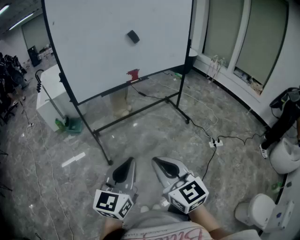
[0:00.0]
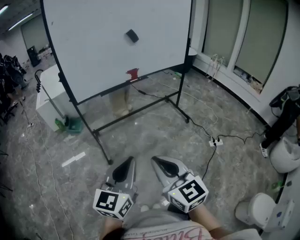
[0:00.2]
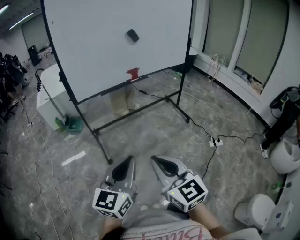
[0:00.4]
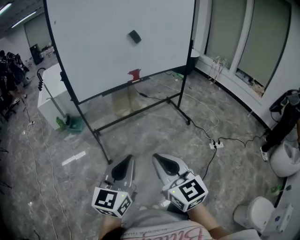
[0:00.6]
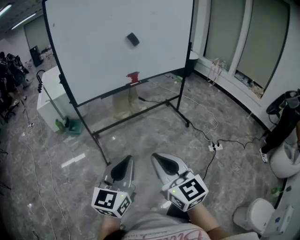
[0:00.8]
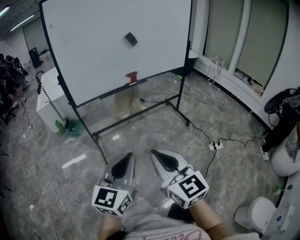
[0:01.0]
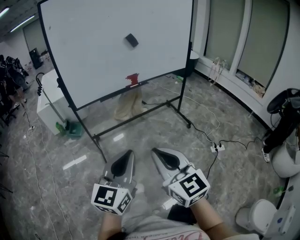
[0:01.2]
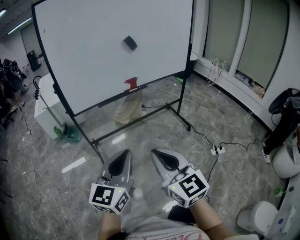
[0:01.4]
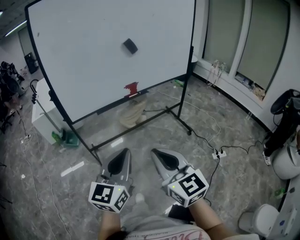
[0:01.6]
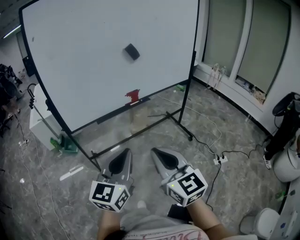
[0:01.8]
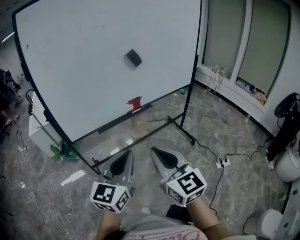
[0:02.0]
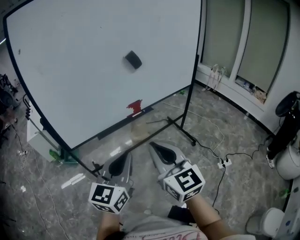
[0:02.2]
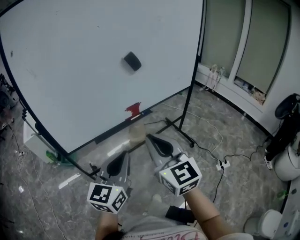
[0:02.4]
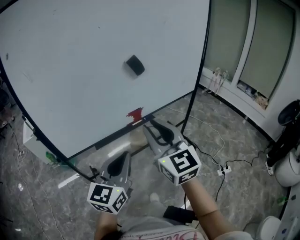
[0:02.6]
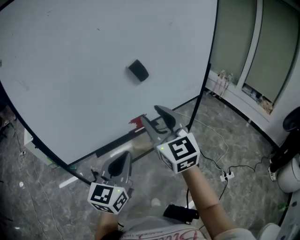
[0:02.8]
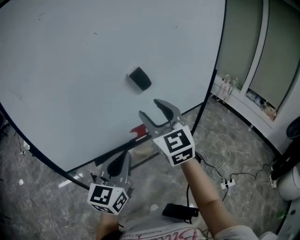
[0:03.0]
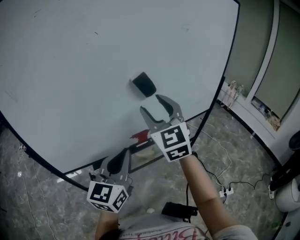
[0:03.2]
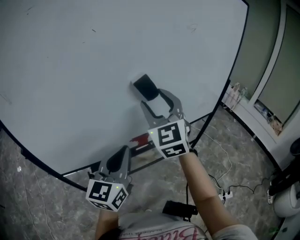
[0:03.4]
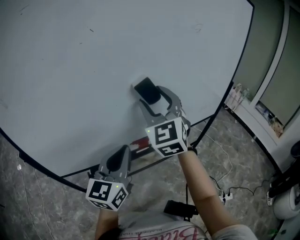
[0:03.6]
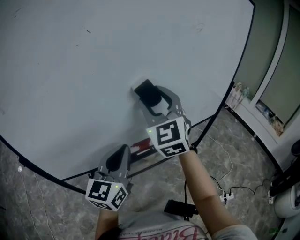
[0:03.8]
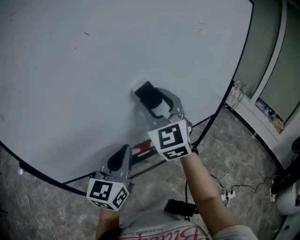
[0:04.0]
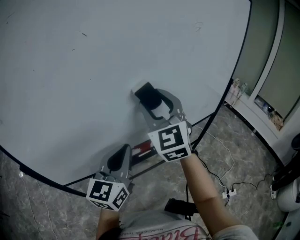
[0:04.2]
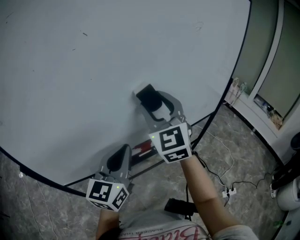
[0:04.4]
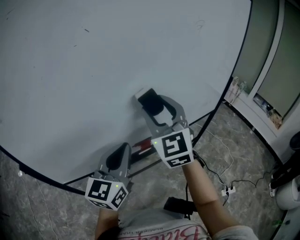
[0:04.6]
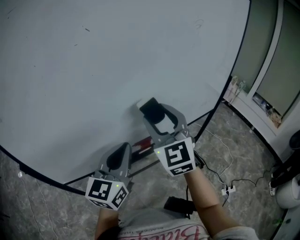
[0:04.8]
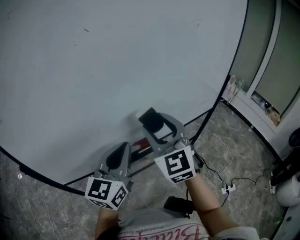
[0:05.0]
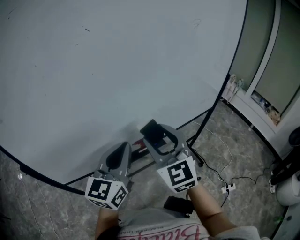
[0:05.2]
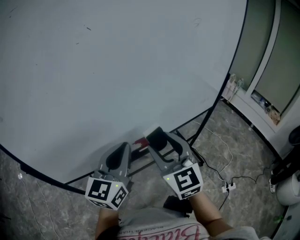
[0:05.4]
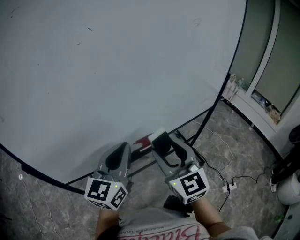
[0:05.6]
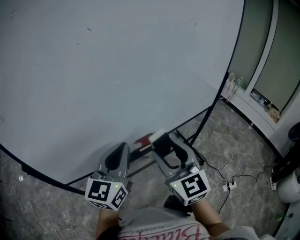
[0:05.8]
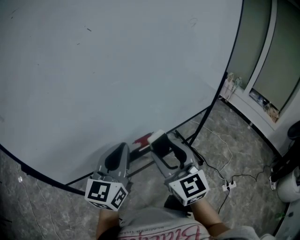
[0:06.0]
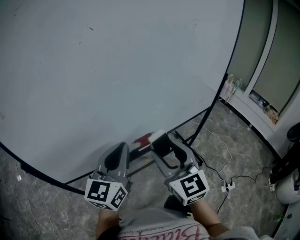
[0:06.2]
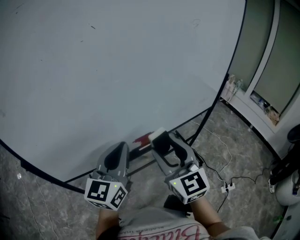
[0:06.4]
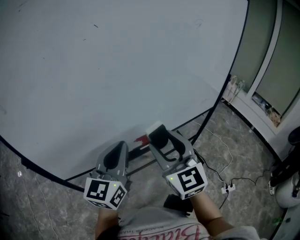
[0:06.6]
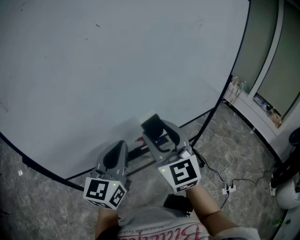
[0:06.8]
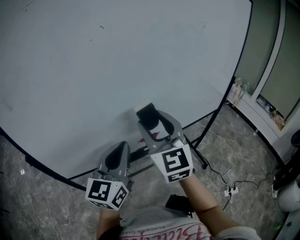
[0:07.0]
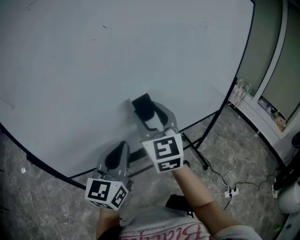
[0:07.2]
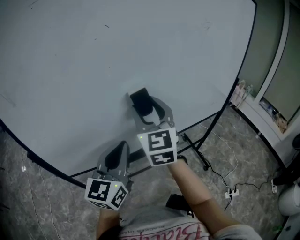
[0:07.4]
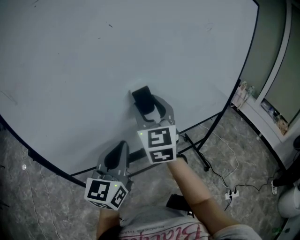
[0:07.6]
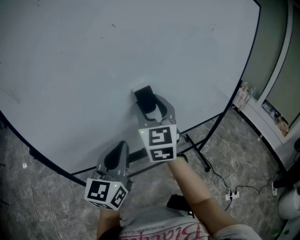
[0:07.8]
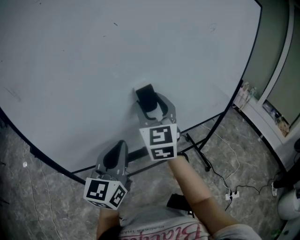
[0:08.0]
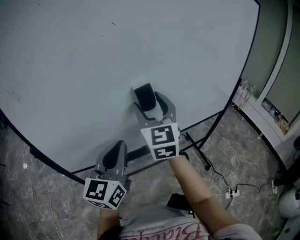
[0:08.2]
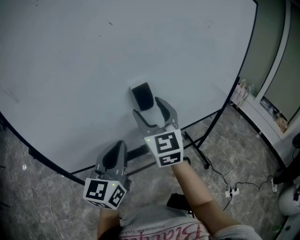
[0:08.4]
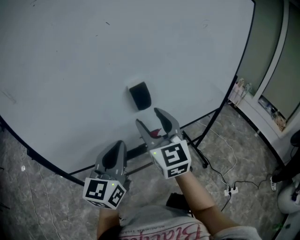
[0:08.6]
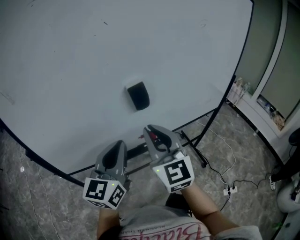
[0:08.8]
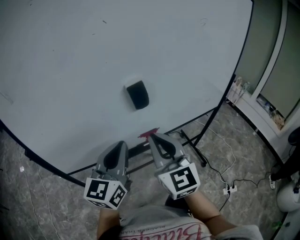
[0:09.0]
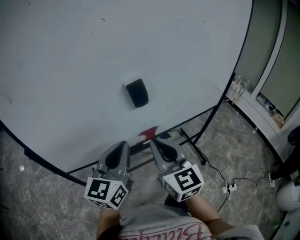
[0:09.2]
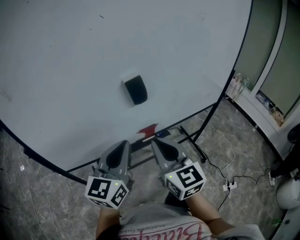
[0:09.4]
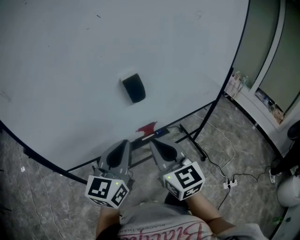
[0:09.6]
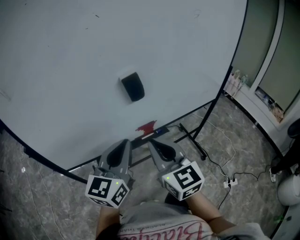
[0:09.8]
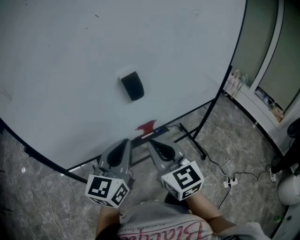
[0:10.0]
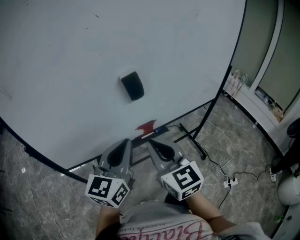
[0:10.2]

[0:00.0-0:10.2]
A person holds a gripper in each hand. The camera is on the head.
0:00.0 to 0:01.4: Both grippers move forward, roughly 10 cm.
0:01.4 to 0:03.0: Both grippers move forward, roughly 40 cm. The right gripper changes its angle by about 20 degrees, and opens its fingers.
0:03.0 to 0:04.4: The two grippers go about 10 cm forward.
0:04.4 to 0:05.8: The right gripper goes roughly 15 cm backward and downward.
0:05.8 to 0:07.2: The right gripper heads forward, upward and to the left, covering approximately 15 cm.
0:07.2 to 0:08.8: The right gripper heads backward, covering approximately 5 cm, and closes up.
0:08.8 to 0:10.2: The right gripper shifts some 5 cm backward.

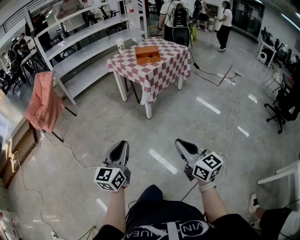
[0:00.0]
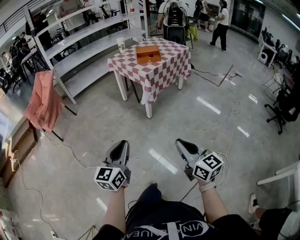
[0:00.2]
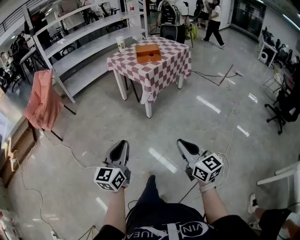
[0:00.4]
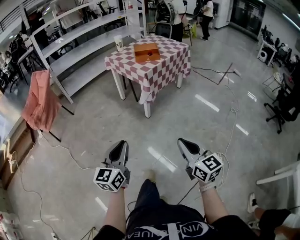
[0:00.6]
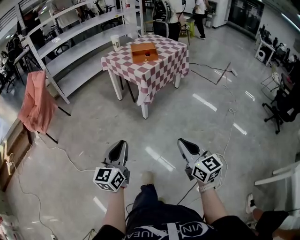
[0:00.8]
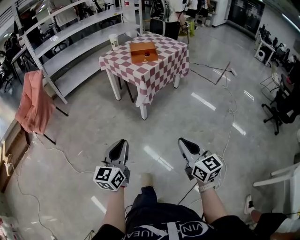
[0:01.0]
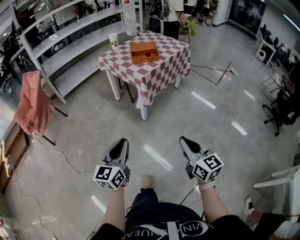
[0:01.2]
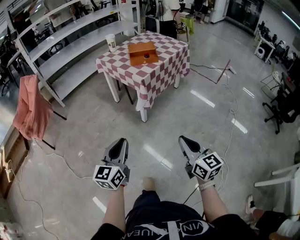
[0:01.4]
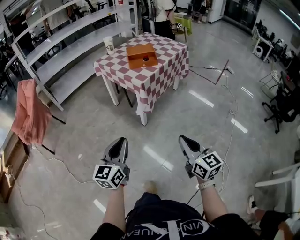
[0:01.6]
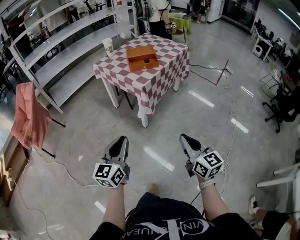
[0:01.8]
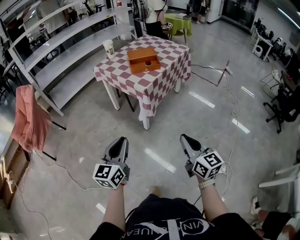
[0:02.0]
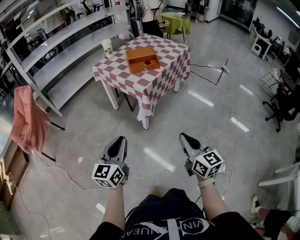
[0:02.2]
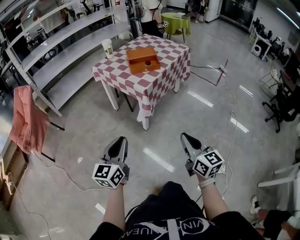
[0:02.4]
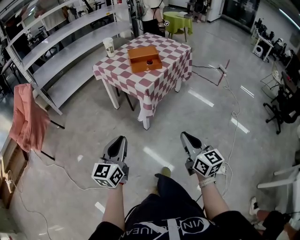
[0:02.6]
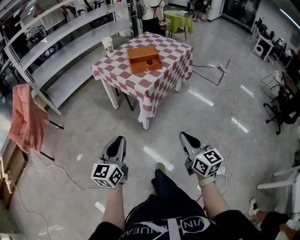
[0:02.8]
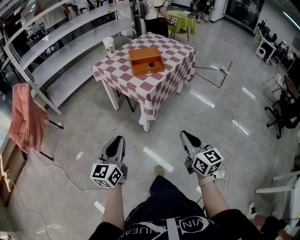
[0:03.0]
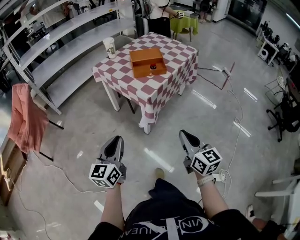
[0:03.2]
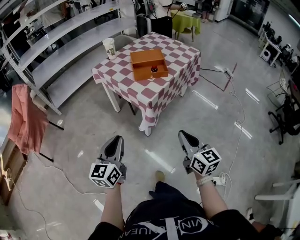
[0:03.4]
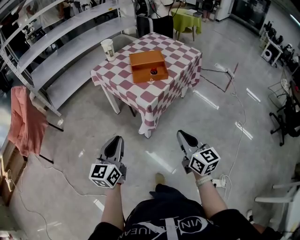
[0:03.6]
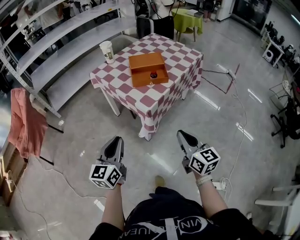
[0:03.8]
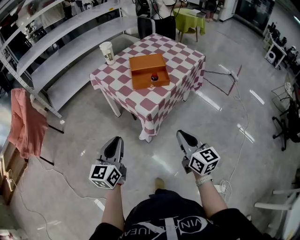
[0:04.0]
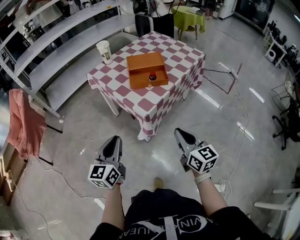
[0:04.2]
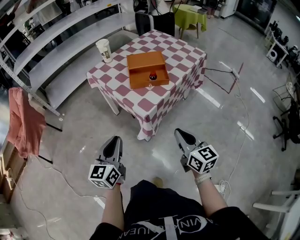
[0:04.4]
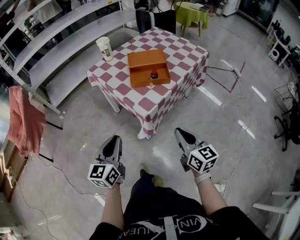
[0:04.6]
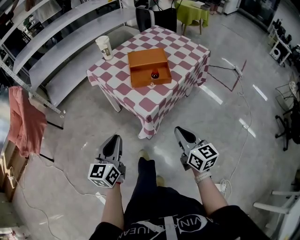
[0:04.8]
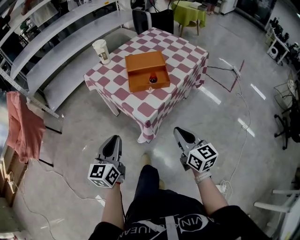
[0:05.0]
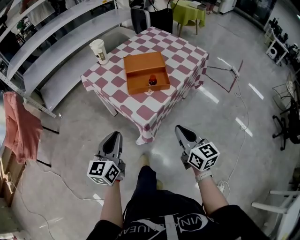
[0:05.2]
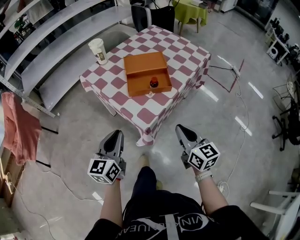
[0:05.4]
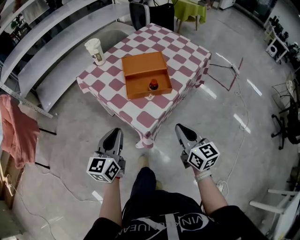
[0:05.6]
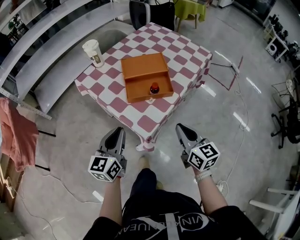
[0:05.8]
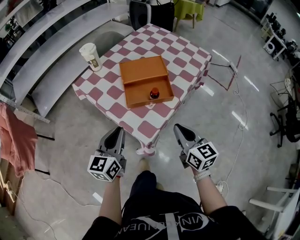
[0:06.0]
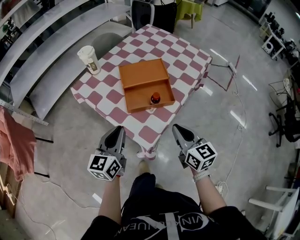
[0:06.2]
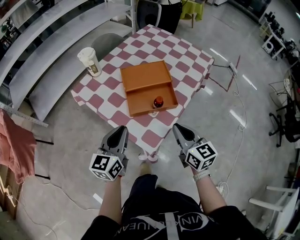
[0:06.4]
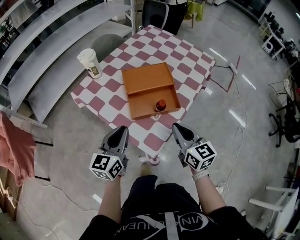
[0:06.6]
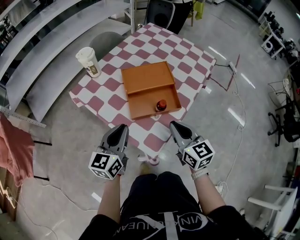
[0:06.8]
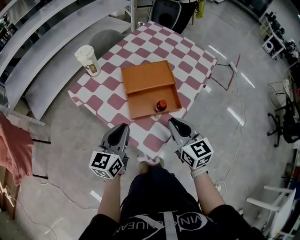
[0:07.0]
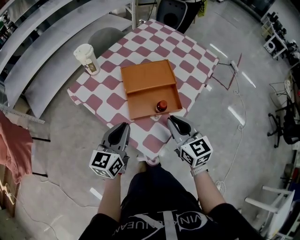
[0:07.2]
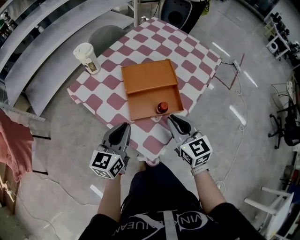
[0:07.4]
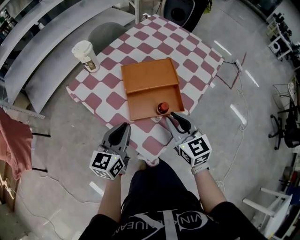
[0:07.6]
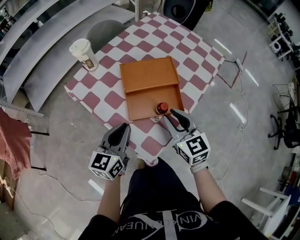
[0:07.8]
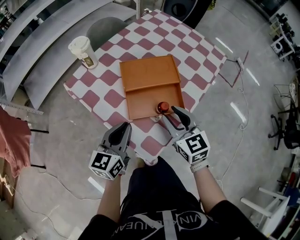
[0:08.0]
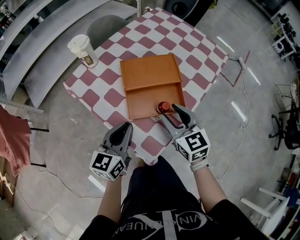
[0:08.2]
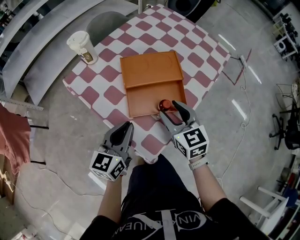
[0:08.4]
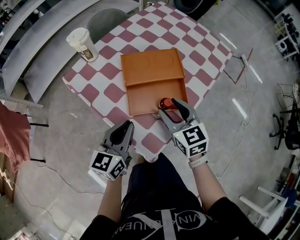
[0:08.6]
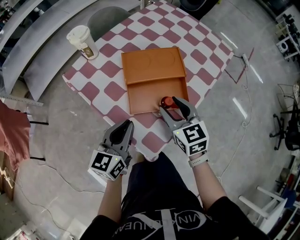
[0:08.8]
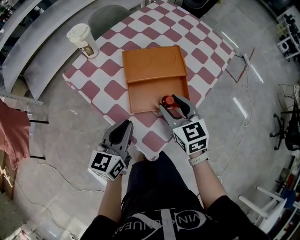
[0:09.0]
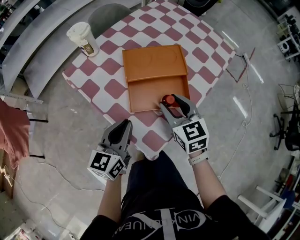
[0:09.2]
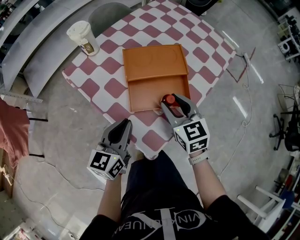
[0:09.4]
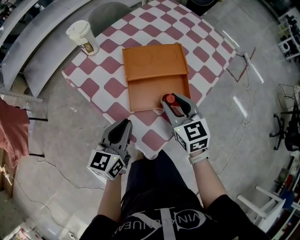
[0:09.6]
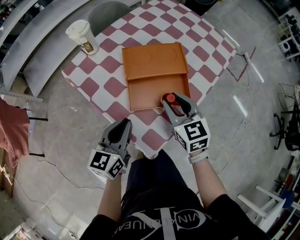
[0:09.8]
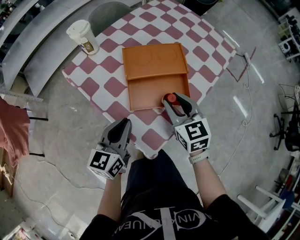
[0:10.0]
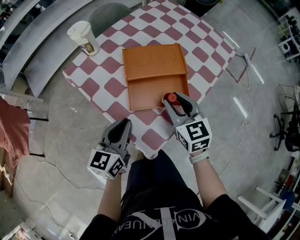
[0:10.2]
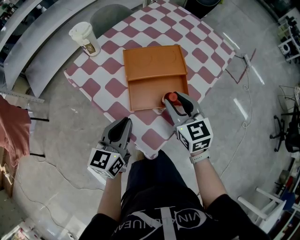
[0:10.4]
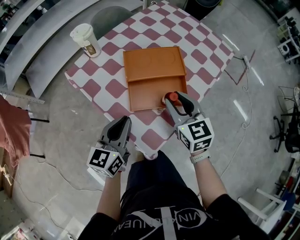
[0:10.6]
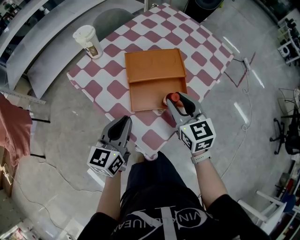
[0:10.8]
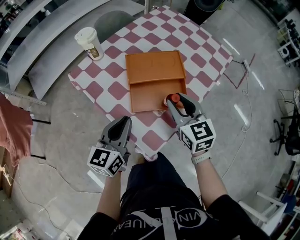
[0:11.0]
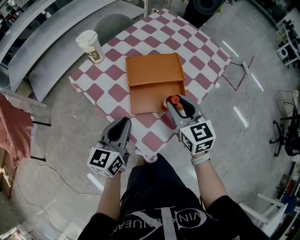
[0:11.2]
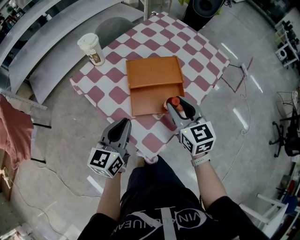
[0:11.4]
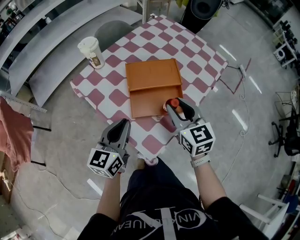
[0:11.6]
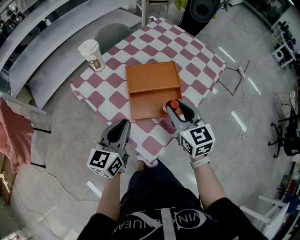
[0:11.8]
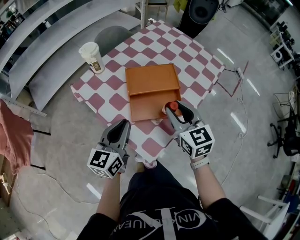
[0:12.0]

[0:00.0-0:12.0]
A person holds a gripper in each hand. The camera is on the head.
0:00.0 to 0:01.6: The two grippers go some 25 cm forward.
0:01.6 to 0:03.0: Both grippers move forward, some 15 cm.
0:03.0 to 0:04.4: Both grippers travel together forward, approximately 20 cm.
0:04.4 to 0:06.0: Both grippers move forward, about 20 cm.
0:06.0 to 0:07.6: Both grippers move forward, approximately 10 cm.
0:07.6 to 0:09.0: The right gripper ends up approximately 5 cm from where it was, and opens up.
0:09.0 to 0:10.4: There are only small adjustments of the grippers.
0:10.4 to 0:12.0: The two grippers go roughly 5 cm upward.

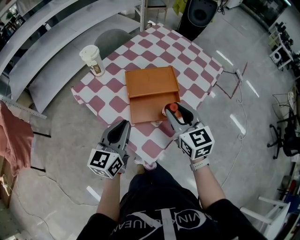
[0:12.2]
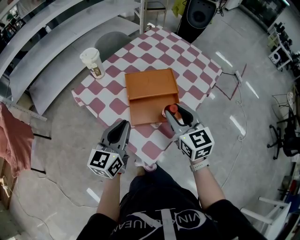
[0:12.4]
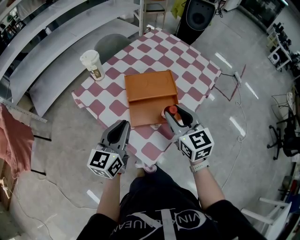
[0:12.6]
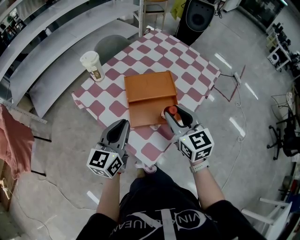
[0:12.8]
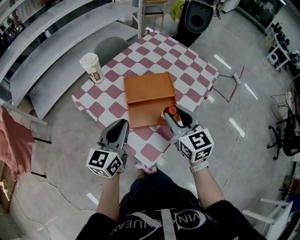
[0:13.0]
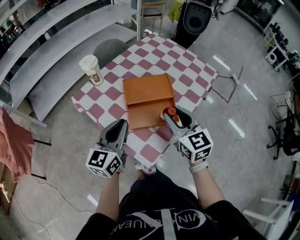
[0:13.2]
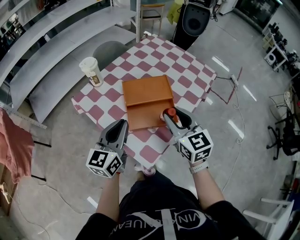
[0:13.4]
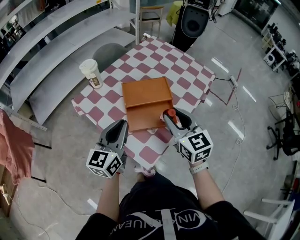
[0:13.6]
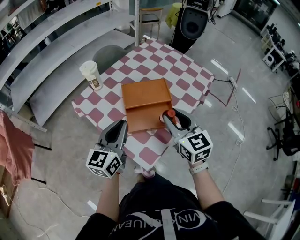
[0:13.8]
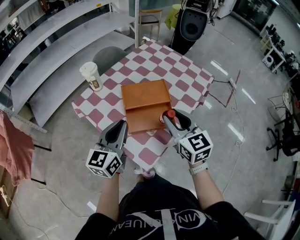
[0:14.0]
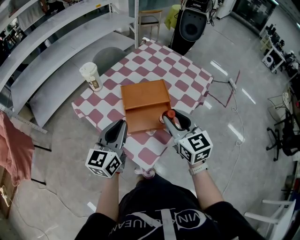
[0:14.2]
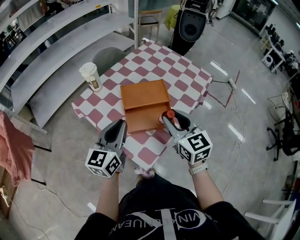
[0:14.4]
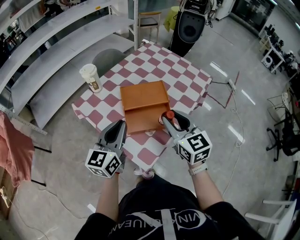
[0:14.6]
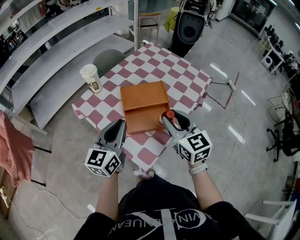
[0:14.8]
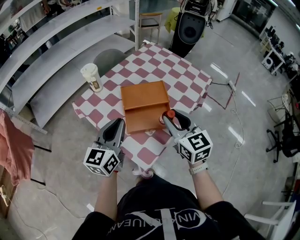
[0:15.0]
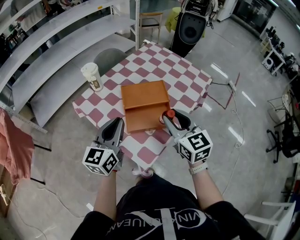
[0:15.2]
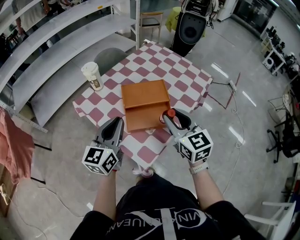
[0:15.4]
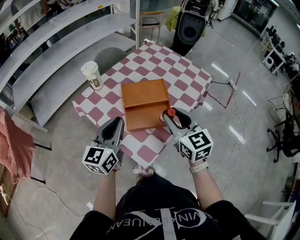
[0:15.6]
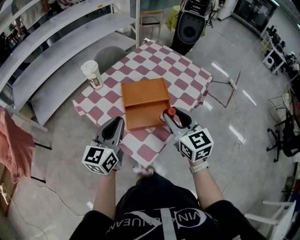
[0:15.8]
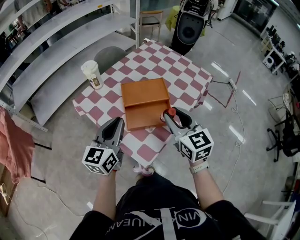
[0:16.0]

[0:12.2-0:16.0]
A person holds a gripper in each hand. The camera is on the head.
0:12.2 to 0:13.4: The grippers make only small movements.
0:13.4 to 0:14.8: The grippers move only a little.
0:14.8 to 0:16.0: Both grippers stay about where they are.
